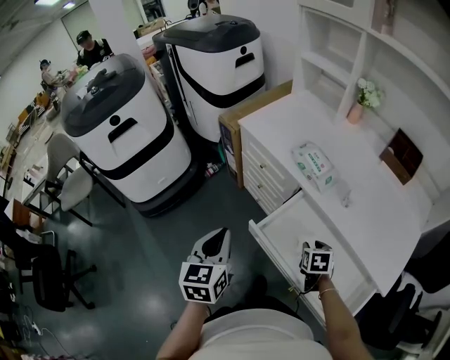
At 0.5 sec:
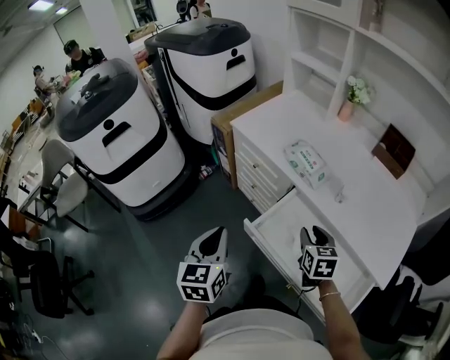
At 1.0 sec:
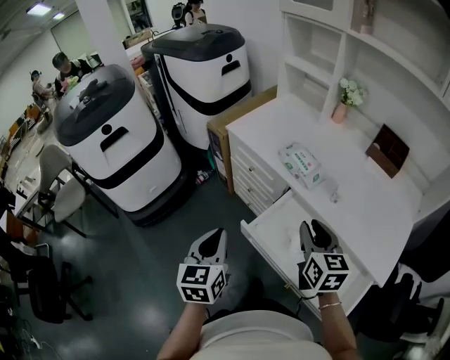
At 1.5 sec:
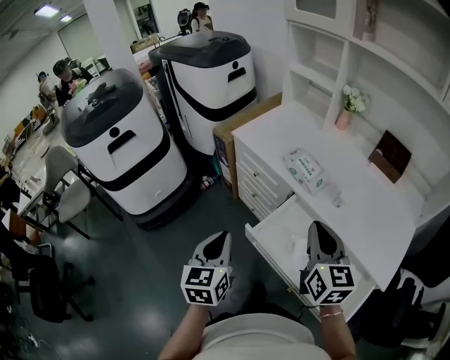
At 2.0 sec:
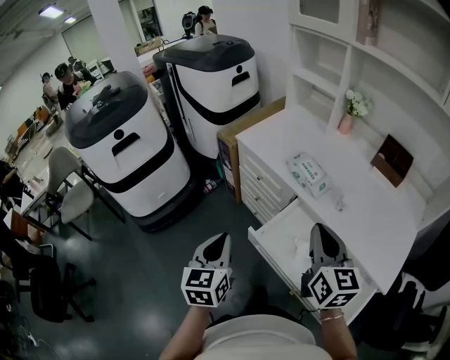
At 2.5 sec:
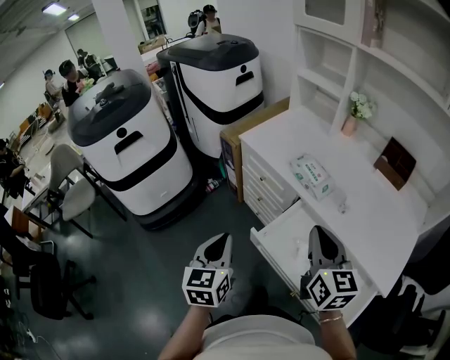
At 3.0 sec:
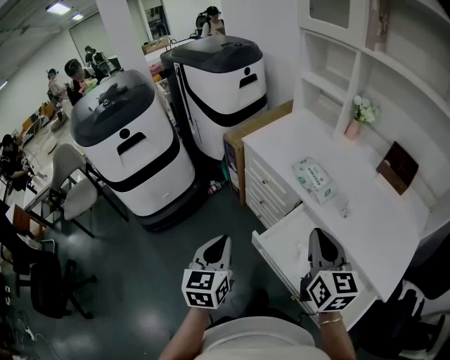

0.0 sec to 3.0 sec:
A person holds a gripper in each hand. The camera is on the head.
0.0 sec to 1.5 sec: The right gripper travels upward by approximately 30 cm, tilts its fingers some 50 degrees upward, and closes.
1.5 sec to 3.0 sec: There are only small adjustments of the grippers.

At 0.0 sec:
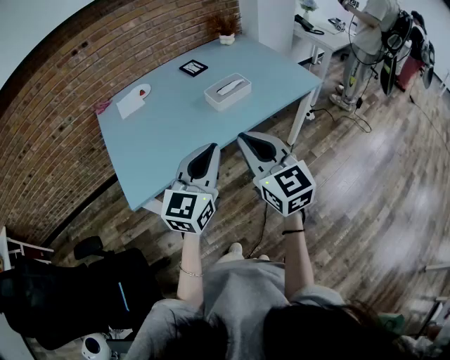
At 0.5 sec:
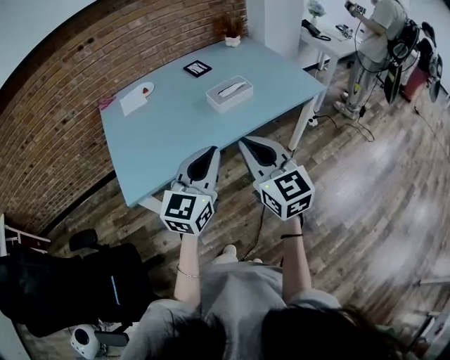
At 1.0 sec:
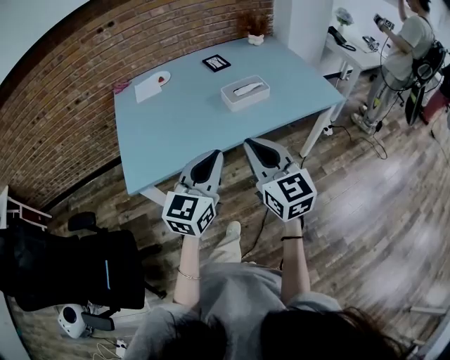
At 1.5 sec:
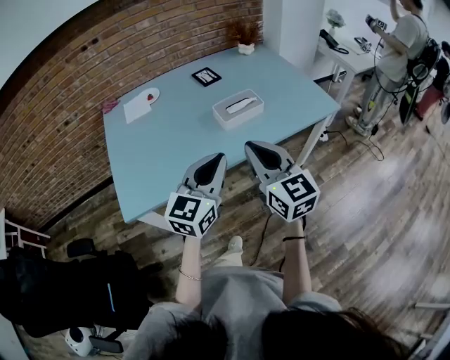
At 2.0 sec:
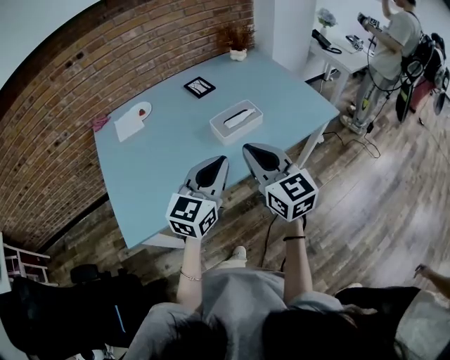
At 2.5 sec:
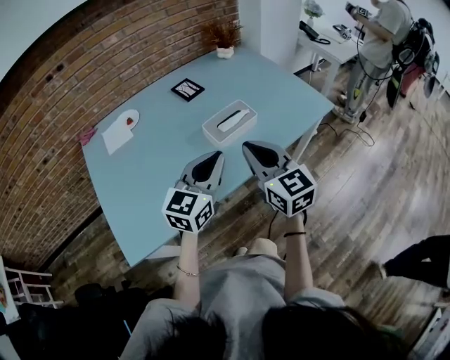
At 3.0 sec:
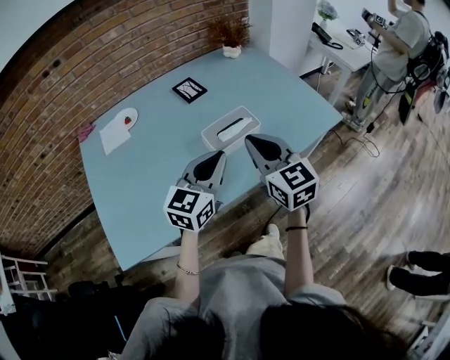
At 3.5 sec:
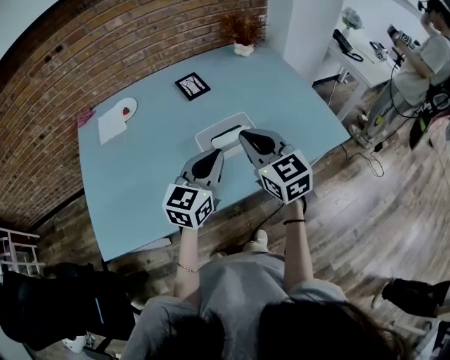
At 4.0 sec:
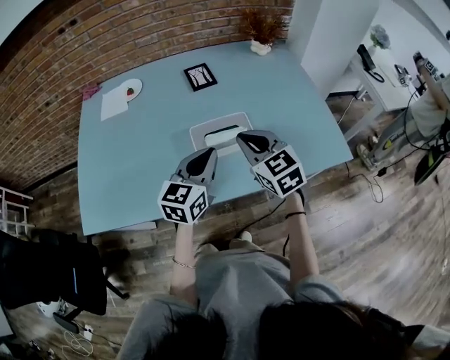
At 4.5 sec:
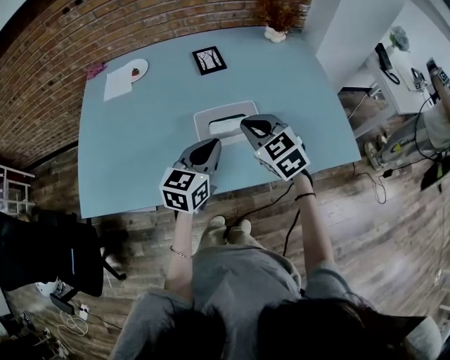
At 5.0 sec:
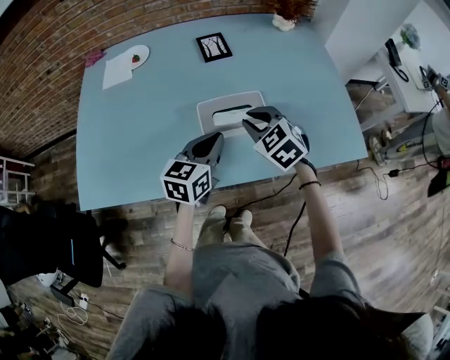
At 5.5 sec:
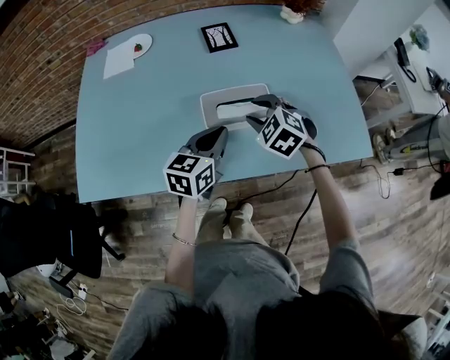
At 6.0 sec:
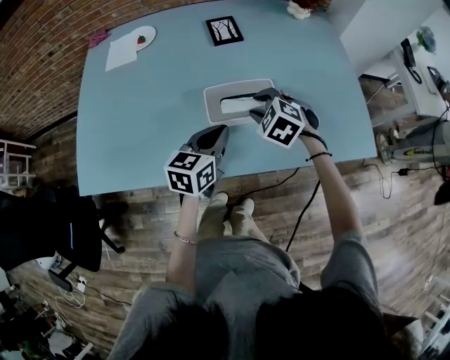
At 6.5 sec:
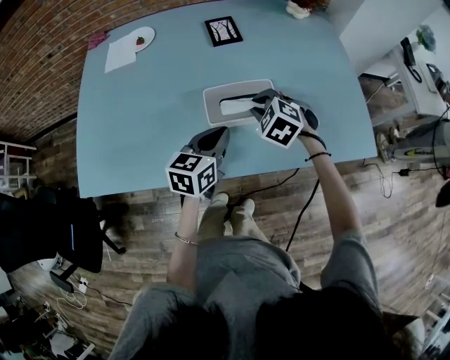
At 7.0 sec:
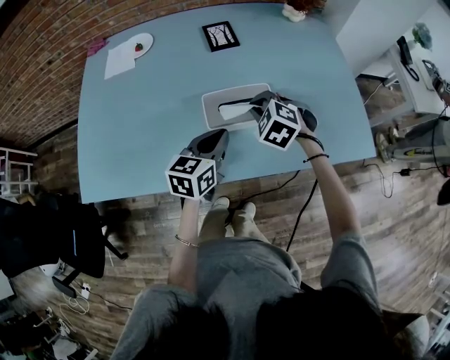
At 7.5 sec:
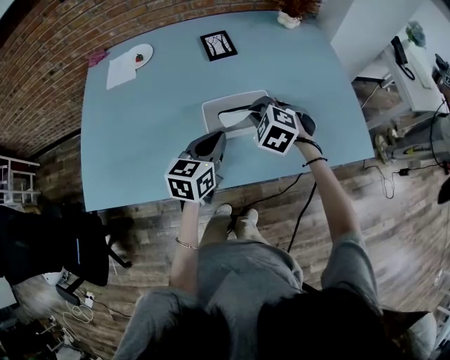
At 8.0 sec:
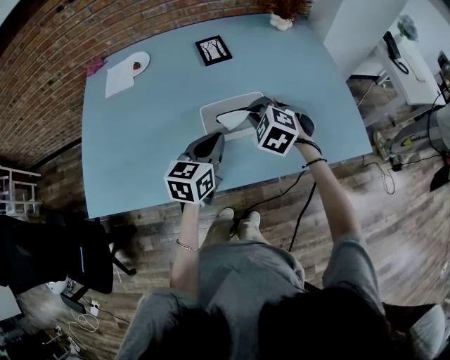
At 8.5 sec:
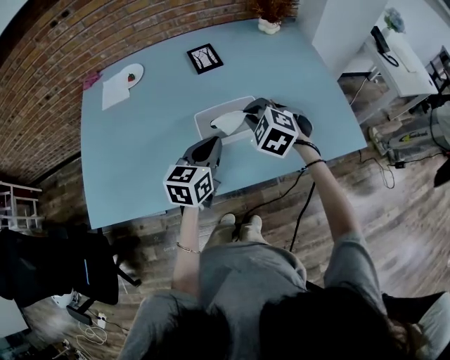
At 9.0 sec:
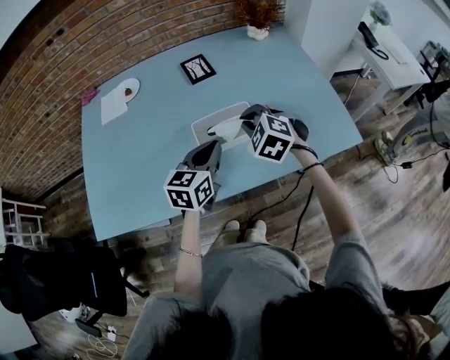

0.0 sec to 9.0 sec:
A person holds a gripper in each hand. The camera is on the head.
0.0 sec to 2.0 sec: The two grippers go about 15 cm forward.
2.0 sec to 4.5 sec: The left gripper moves about 25 cm, and turns by approximately 30 degrees, while the right gripper ends up some 30 cm from where it was, and rotates some 40 degrees.
4.5 sec to 7.0 sec: The left gripper goes roughly 5 cm downward. The right gripper heads downward, covering about 10 cm, changes its angle by about 30 degrees, and opens, then closes again.
7.0 sec to 9.0 sec: The right gripper shifts roughly 5 cm upward.

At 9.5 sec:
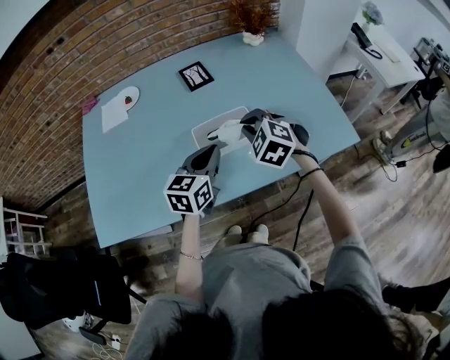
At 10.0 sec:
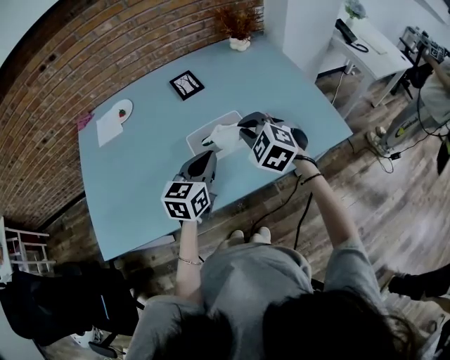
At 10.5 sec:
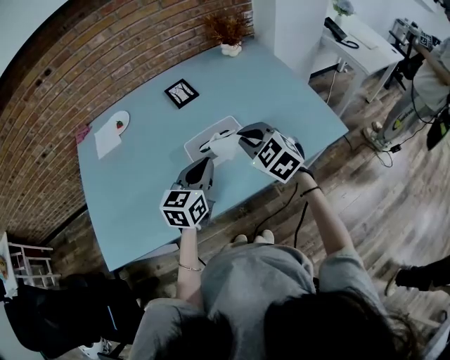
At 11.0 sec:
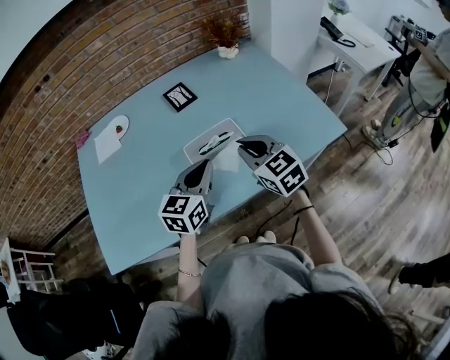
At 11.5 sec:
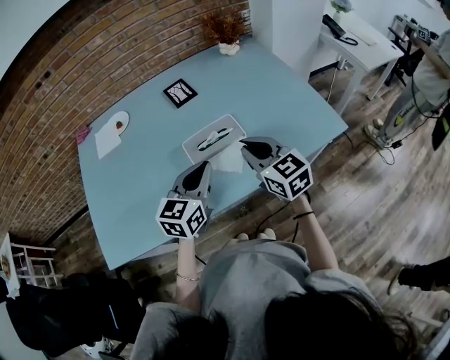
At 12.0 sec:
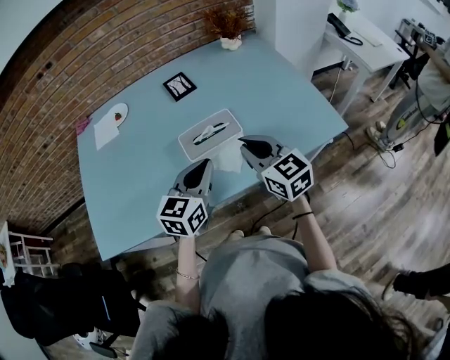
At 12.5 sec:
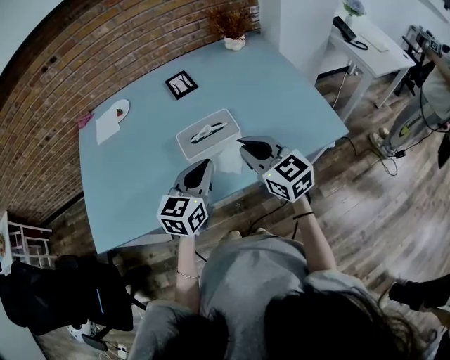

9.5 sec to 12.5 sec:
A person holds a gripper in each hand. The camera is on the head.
9.5 sec to 11.0 sec: The right gripper shifts roughly 5 cm backward, and rotates about 40 degrees.
11.0 sec to 12.5 sec: The left gripper moves about 5 cm.

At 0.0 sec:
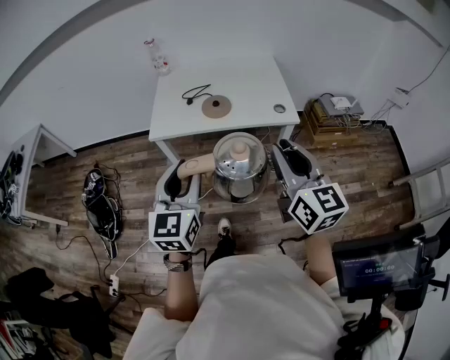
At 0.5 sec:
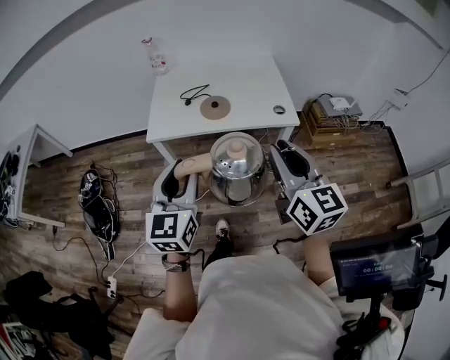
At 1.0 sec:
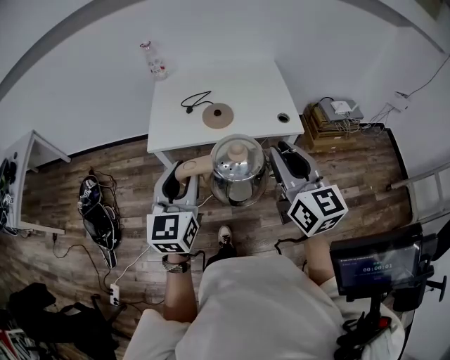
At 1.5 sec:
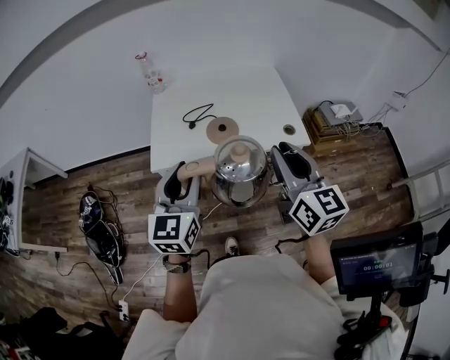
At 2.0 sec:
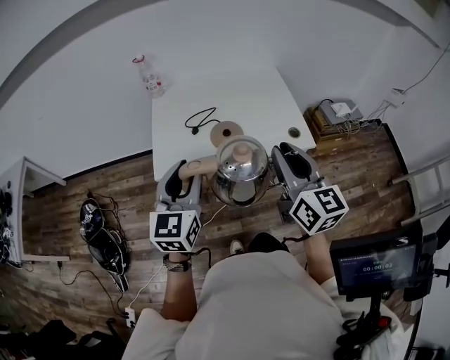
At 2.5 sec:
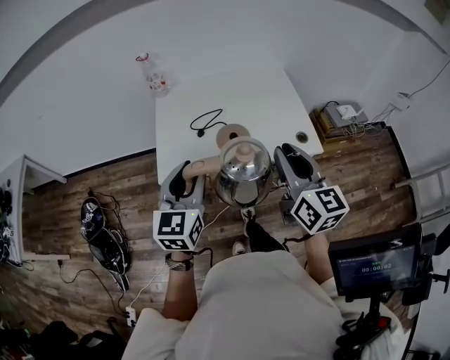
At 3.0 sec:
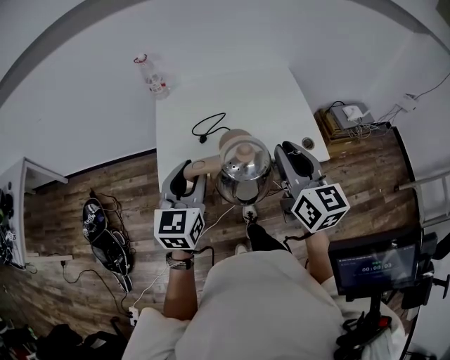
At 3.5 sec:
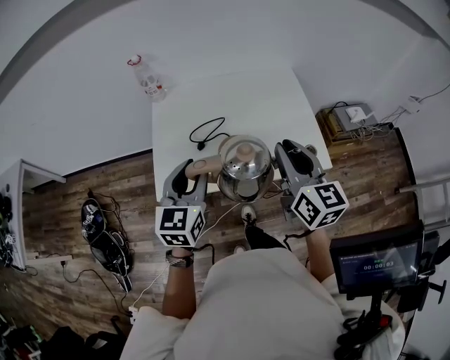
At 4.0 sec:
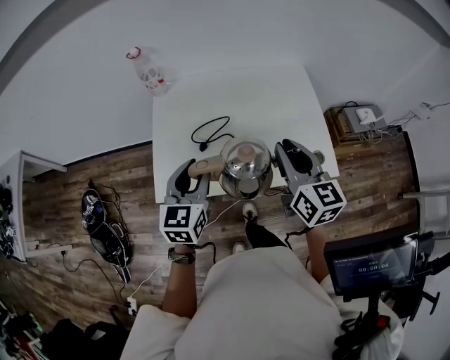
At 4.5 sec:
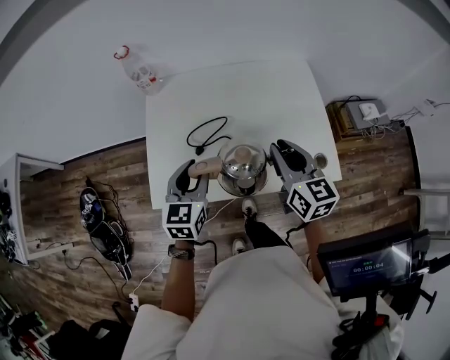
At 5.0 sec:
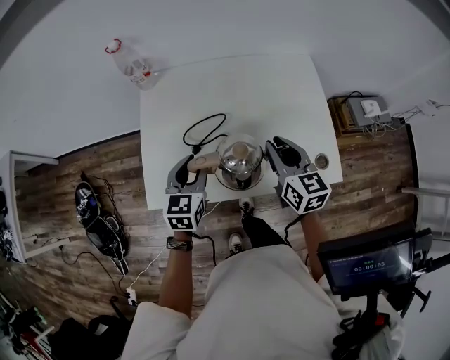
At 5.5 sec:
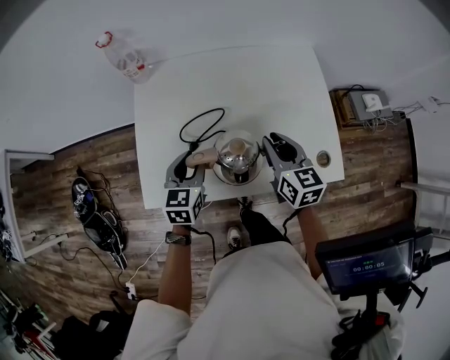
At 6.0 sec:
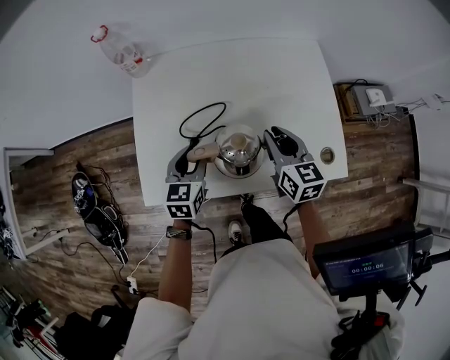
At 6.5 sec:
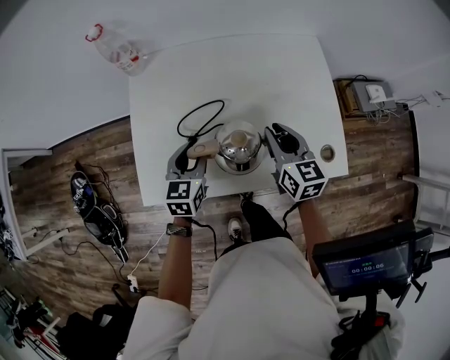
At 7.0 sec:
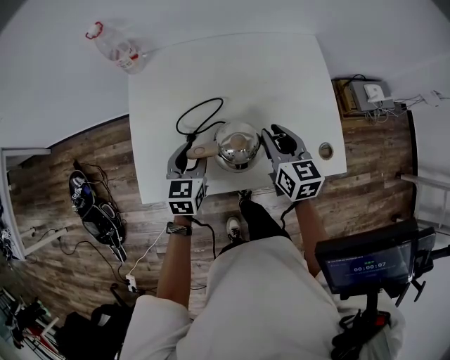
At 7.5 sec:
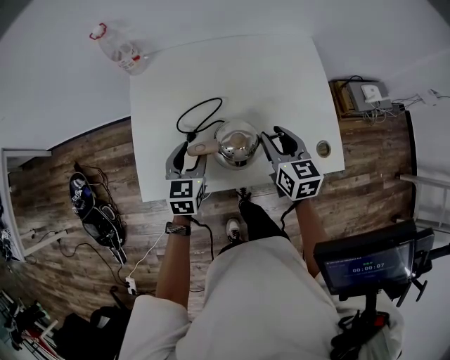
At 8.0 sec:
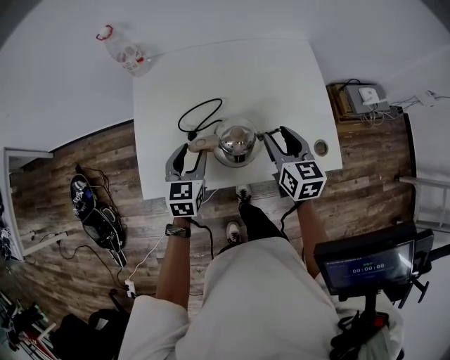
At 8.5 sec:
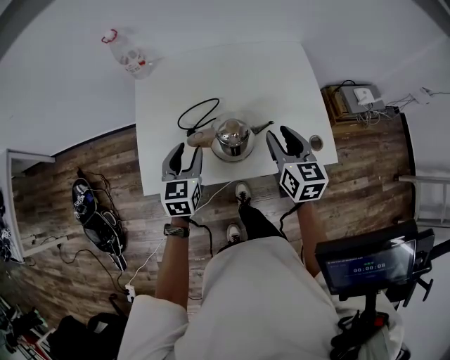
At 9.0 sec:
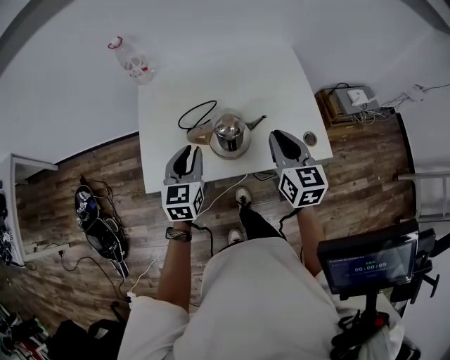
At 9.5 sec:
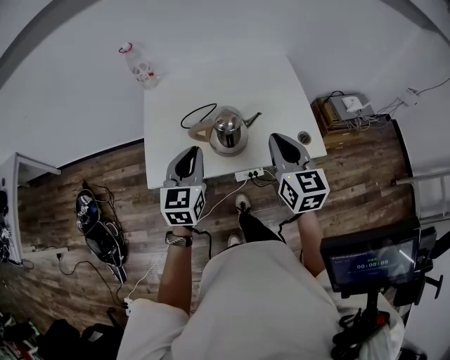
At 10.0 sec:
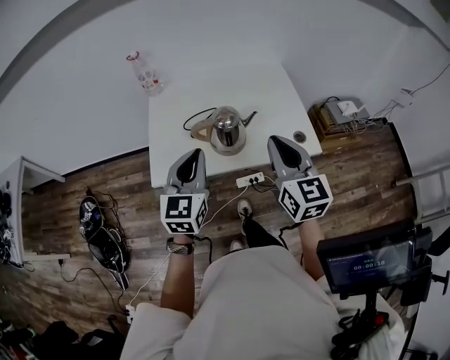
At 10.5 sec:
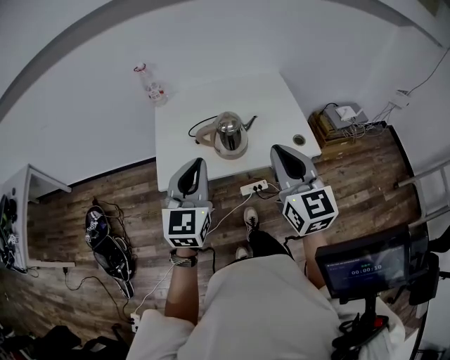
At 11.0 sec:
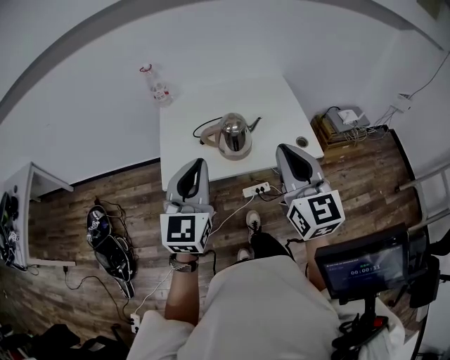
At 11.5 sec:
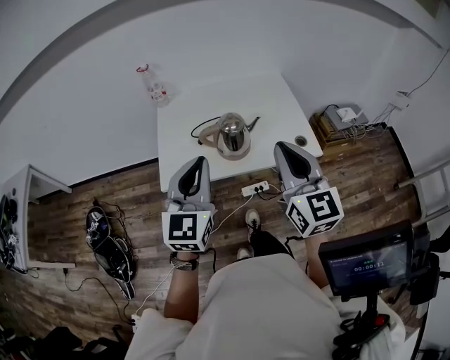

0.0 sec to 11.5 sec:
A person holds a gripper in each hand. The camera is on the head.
0.0 sec to 2.0 sec: Both grippers travel together forward and to the left, about 25 cm.
2.0 sec to 4.0 sec: Both grippers travel together forward and downward, about 25 cm.
4.0 sec to 6.0 sec: The grippers both shift downward and forward by approximately 20 cm.
6.0 sec to 7.5 sec: The grippers stay close to where they were, moving slightly.
7.5 sec to 9.5 sec: Both grippers move upward and backward, roughly 20 cm. The left gripper closes its fingers, while the right gripper closes.
9.5 sec to 11.5 sec: The two grippers go roughly 20 cm upward and backward.
